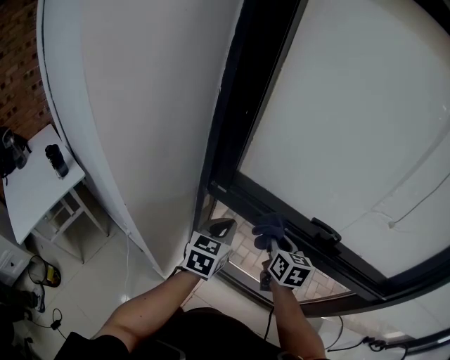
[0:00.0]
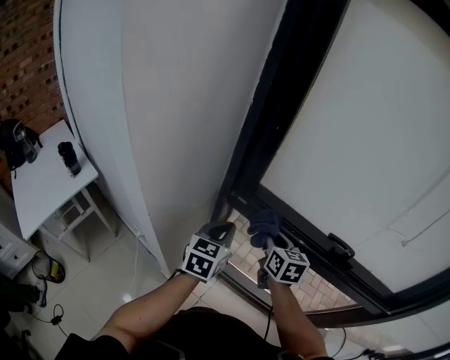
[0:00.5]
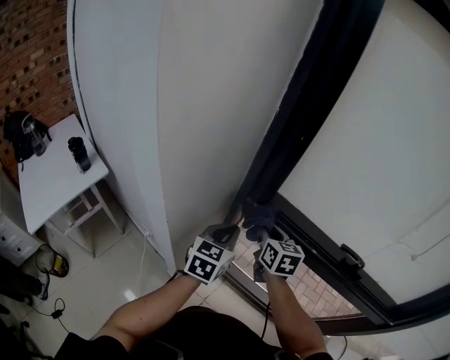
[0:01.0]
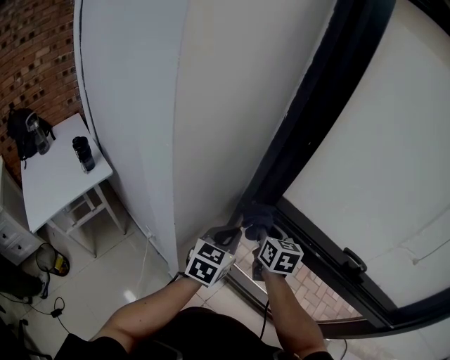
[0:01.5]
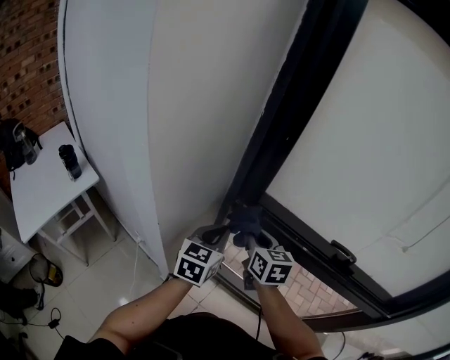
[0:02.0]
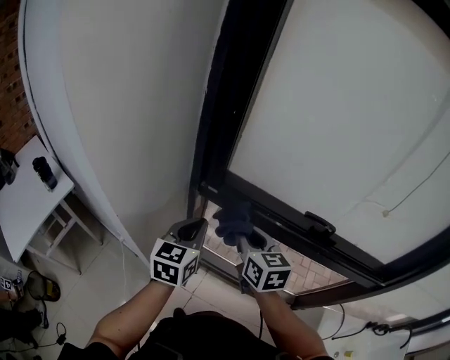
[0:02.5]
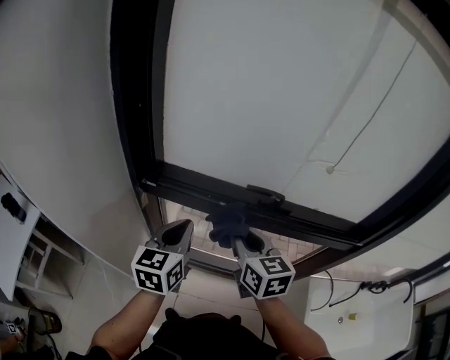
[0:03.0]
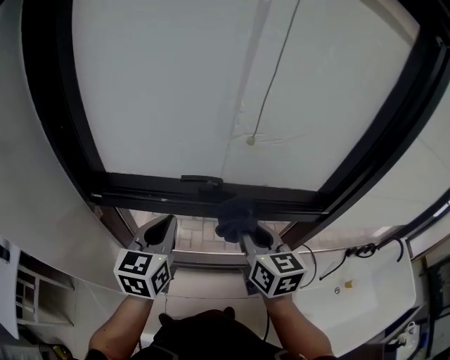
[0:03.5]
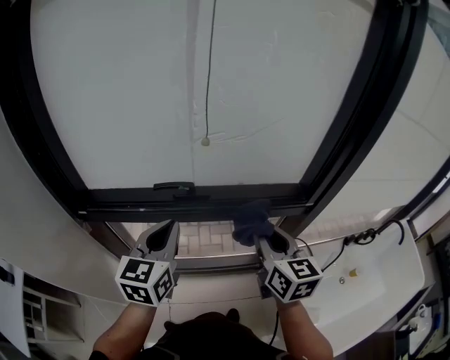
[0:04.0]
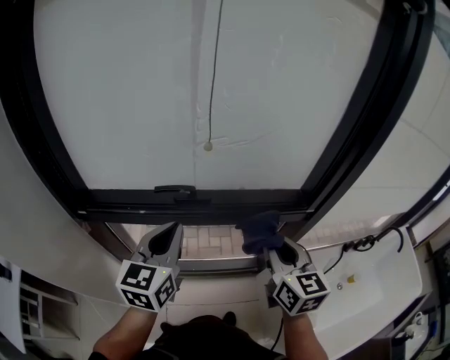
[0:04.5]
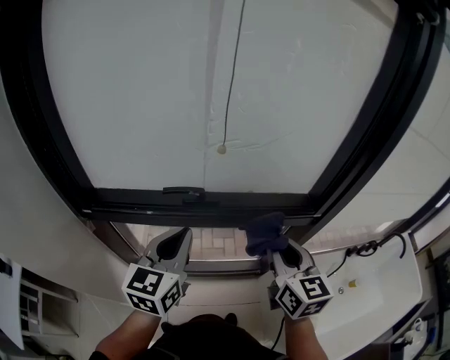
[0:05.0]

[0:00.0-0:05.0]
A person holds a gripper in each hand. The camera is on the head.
0.0 to 2.5 s: The left gripper is displaced to the left by approximately 5 cm; the right gripper shifts approximately 10 cm to the left.
2.5 to 5.0 s: The right gripper ends up approximately 40 cm from where it was, and rotates some 30 degrees. The left gripper moves approximately 35 cm, and rotates about 30 degrees.

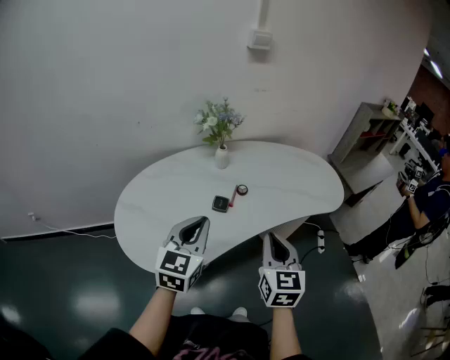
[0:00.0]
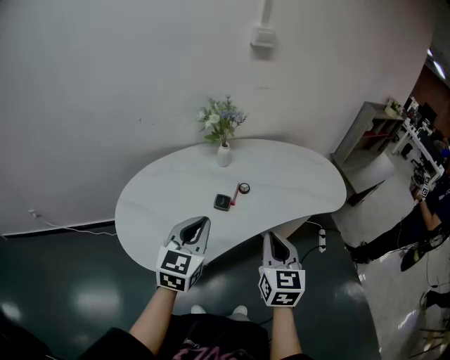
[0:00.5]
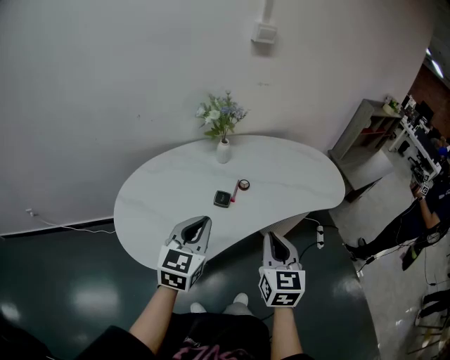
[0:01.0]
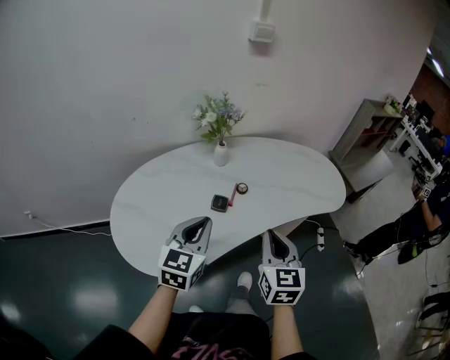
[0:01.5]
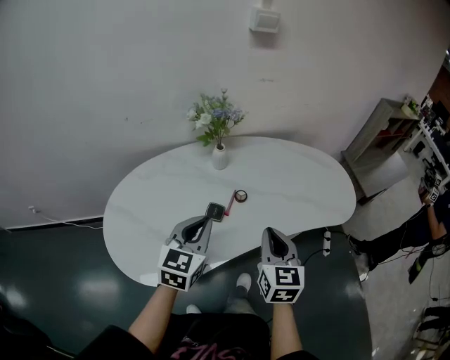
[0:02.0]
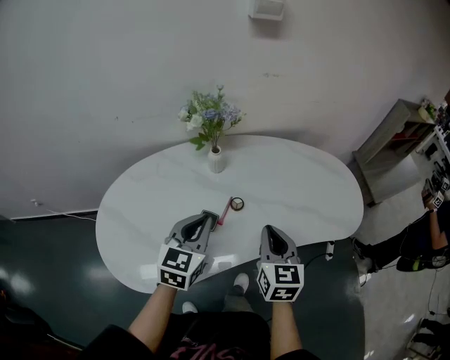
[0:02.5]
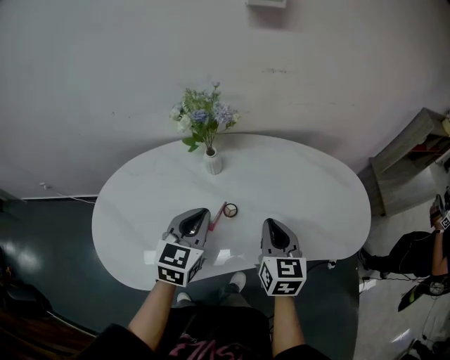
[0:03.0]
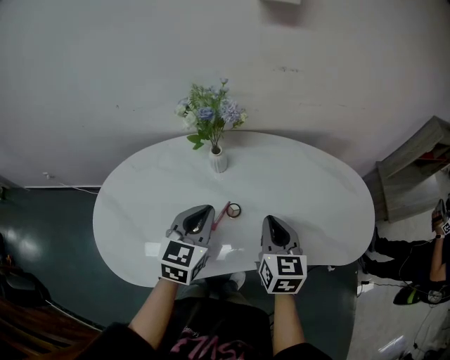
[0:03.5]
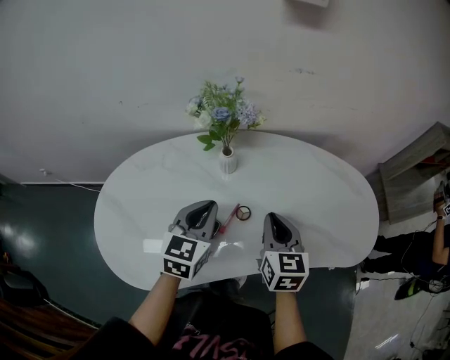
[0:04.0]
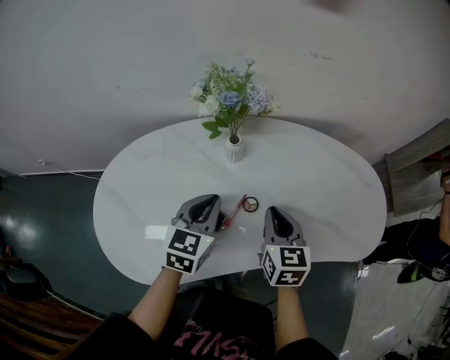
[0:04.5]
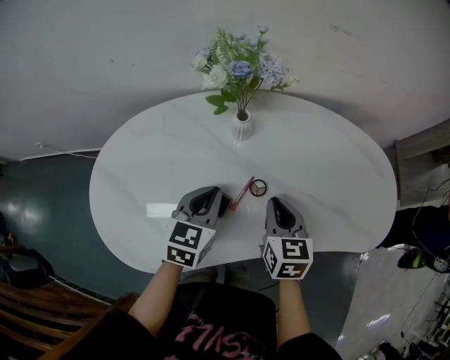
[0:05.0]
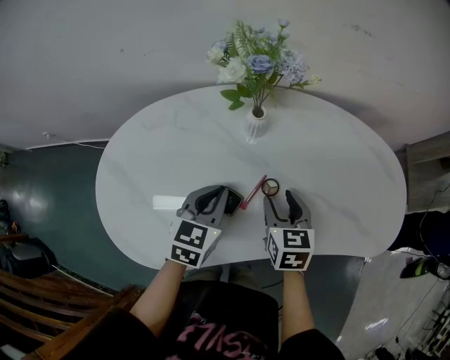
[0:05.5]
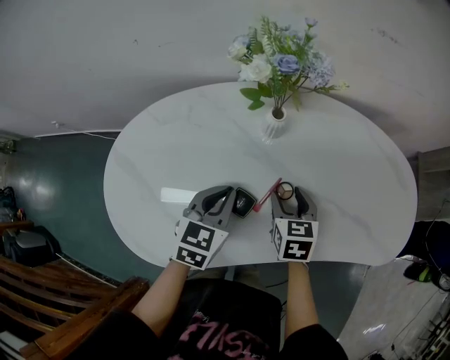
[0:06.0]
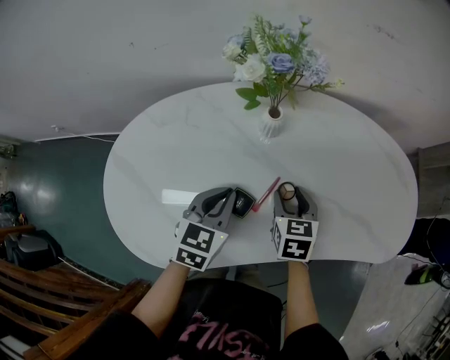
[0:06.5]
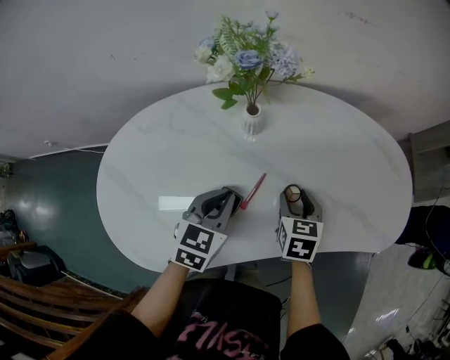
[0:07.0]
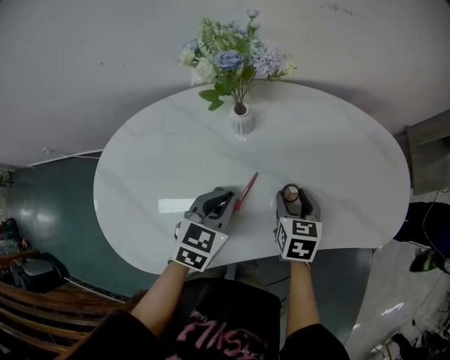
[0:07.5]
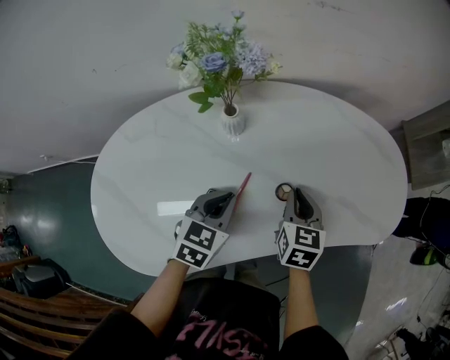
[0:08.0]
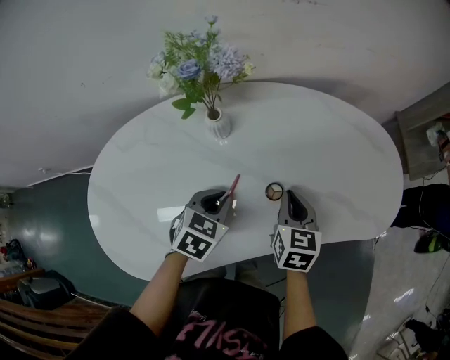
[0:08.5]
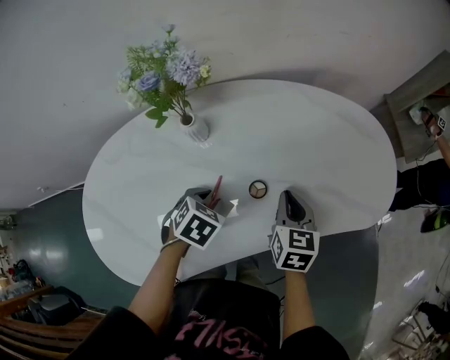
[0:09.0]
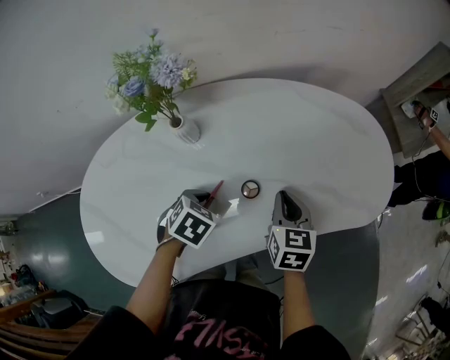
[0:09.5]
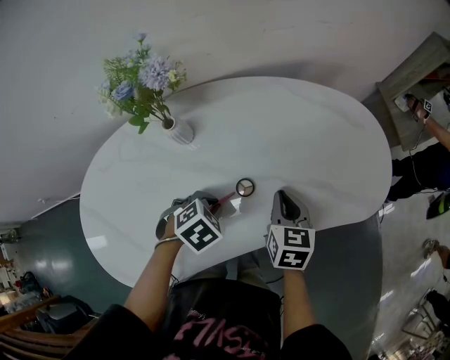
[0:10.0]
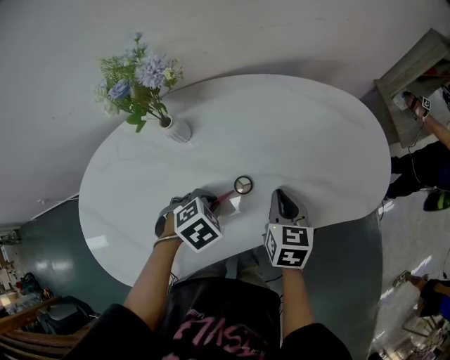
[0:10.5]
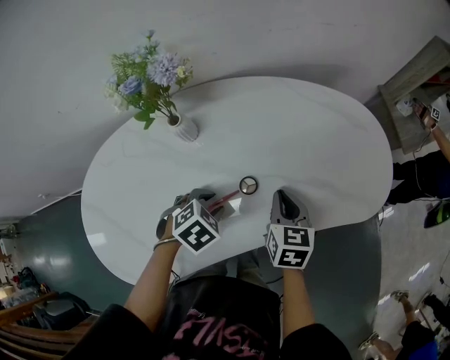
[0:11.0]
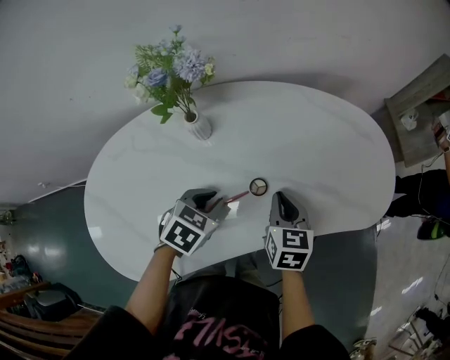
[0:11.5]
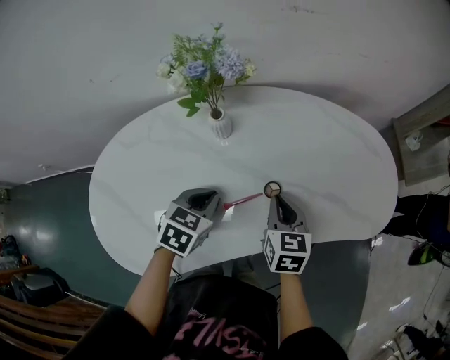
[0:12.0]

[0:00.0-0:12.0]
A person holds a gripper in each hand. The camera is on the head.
0.0 to 2.0 s: The right gripper travels forward by roughly 10 cm; the left gripper moves forward and downward, approximately 10 cm.
2.0 to 4.0 s: The two grippers go about 15 cm forward.
4.0 to 6.0 s: The left gripper heads downward, covering approximately 10 cm. Meanwhile the right gripper is displaced downward and to the left by approximately 15 cm, changes its angle by roughly 20 degrees, and opens its fingers.
6.0 to 8.0 s: Both grippers move to the right, about 10 cm. The right gripper closes.
8.0 to 10.0 s: The right gripper shifts roughly 5 cm to the right; the left gripper goes some 10 cm to the right and downward, and tilts its fingers about 30 degrees downward.
10.0 to 12.0 s: The left gripper shifts some 10 cm to the left and upward, and changes its angle by roughly 40 degrees, while the right gripper is displaced to the left by some 10 cm.

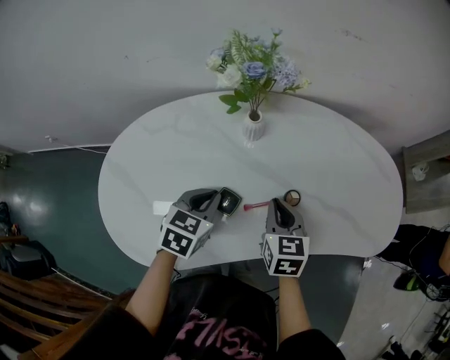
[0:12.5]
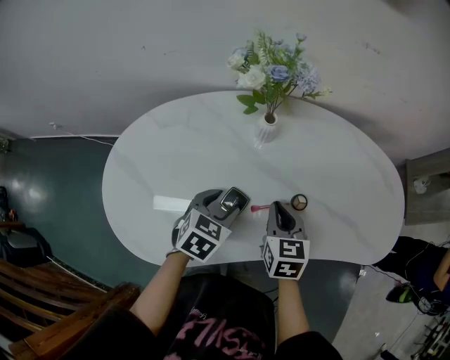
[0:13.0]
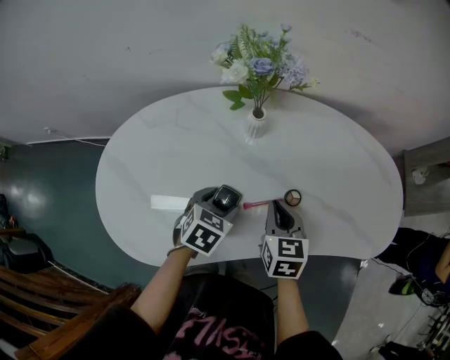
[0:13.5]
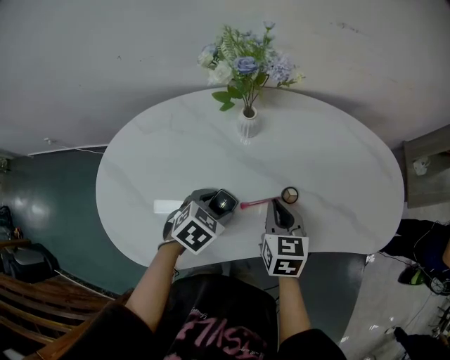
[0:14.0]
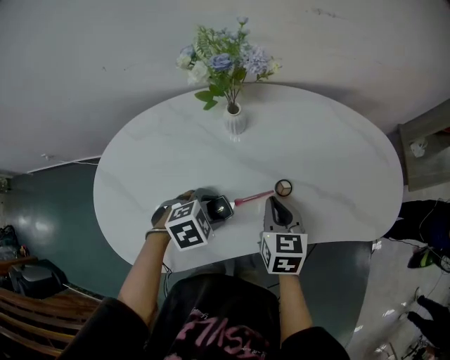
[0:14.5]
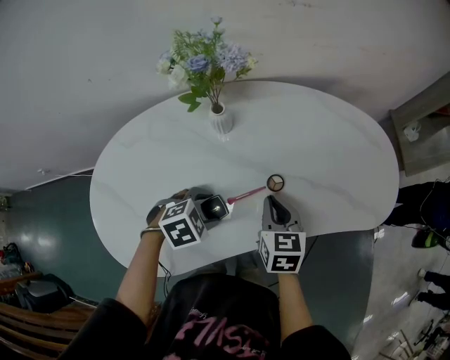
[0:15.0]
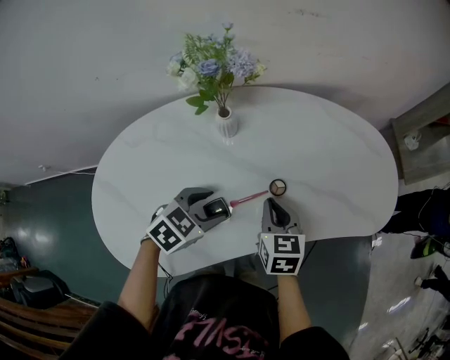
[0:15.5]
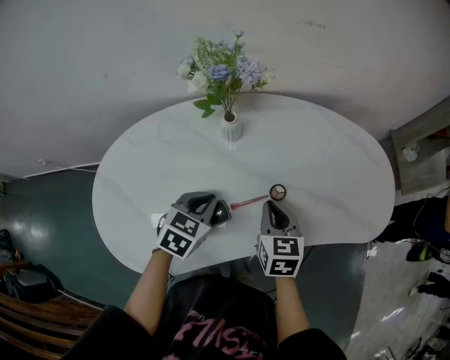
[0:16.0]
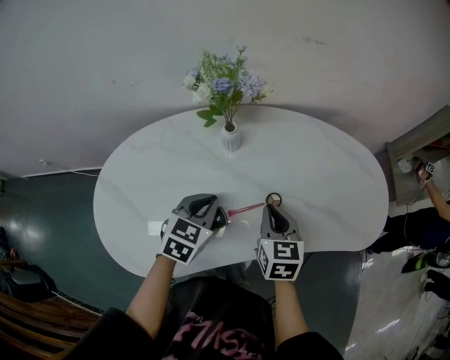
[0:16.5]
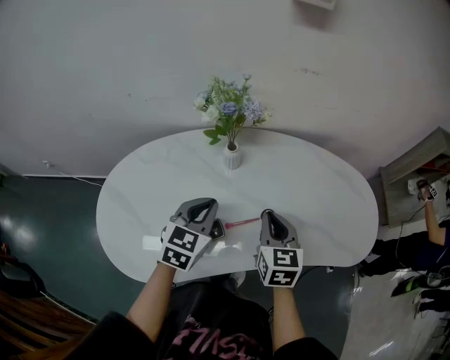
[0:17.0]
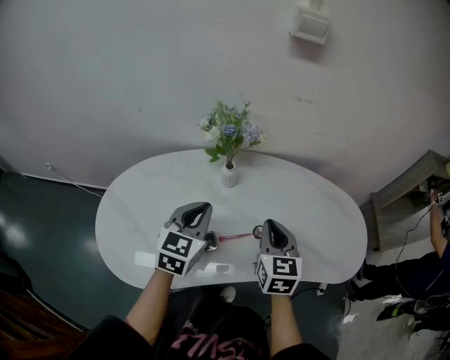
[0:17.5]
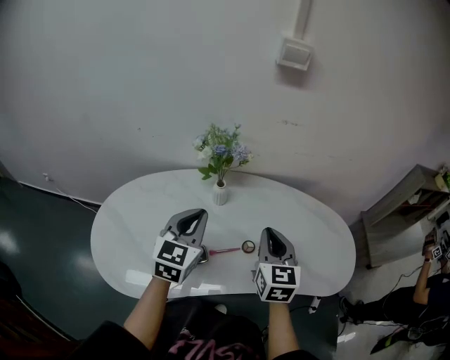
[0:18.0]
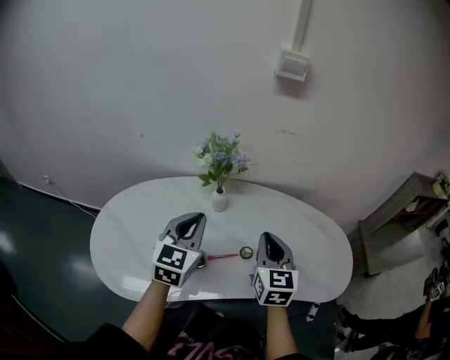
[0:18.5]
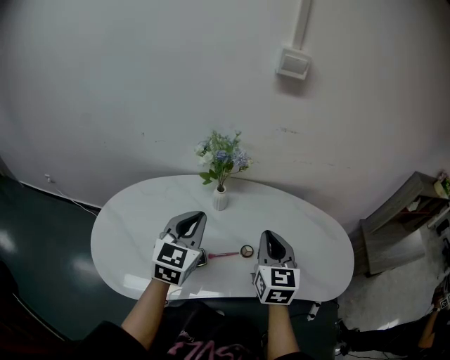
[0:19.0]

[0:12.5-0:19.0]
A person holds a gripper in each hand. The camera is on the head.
12.5 to 14.5 s: The left gripper travels downward and to the right by roughly 10 cm, changes its angle by some 50 degrees, and opens.
14.5 to 17.0 s: The right gripper moves upward, roughly 10 cm. The left gripper travels upward by some 15 cm, angles its fingers upward, by approximately 40 degrees, and closes its fingers.
17.0 to 19.0 s: Both grippers move upward, approximately 10 cm. The left gripper rotates some 20 degrees.

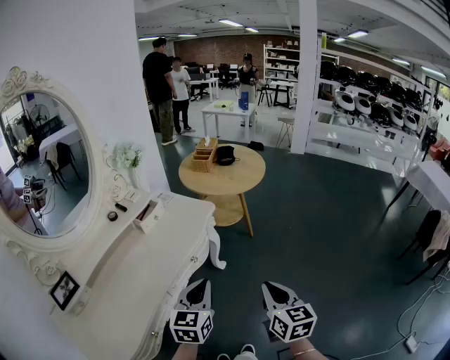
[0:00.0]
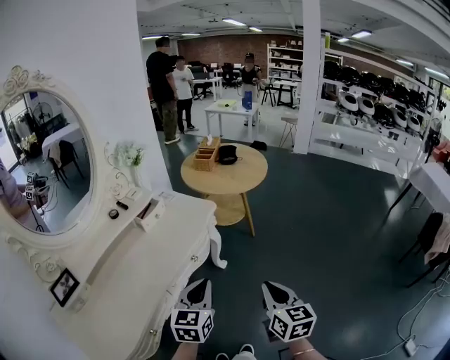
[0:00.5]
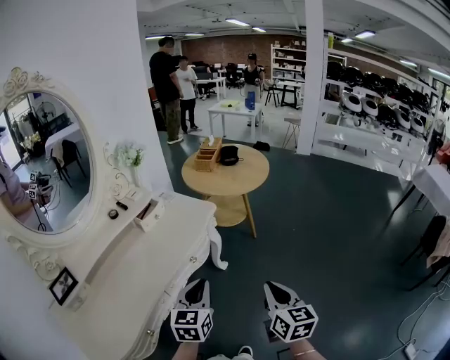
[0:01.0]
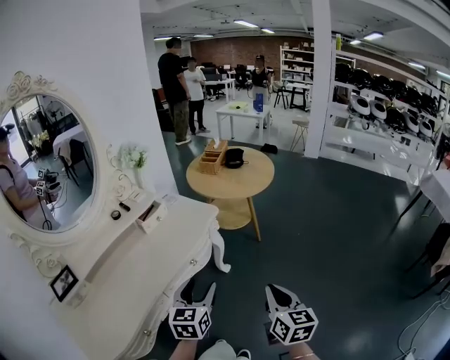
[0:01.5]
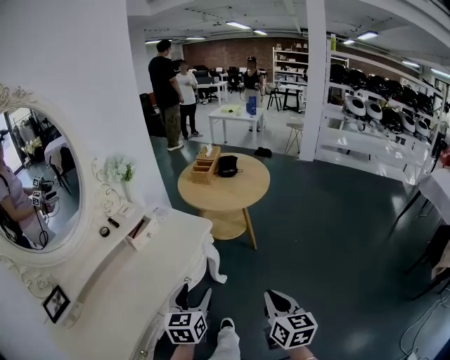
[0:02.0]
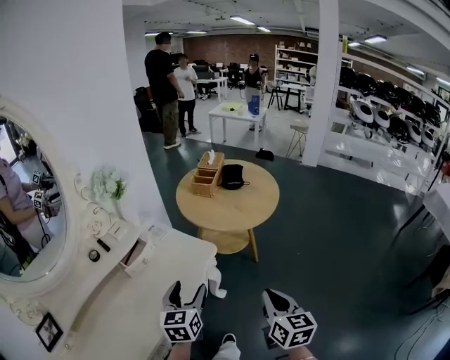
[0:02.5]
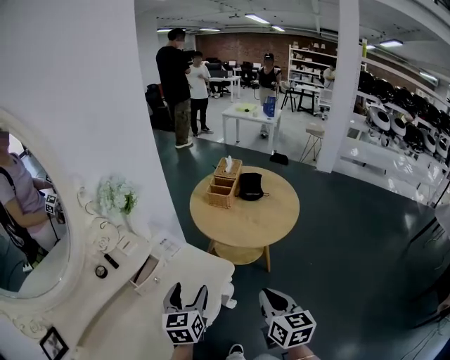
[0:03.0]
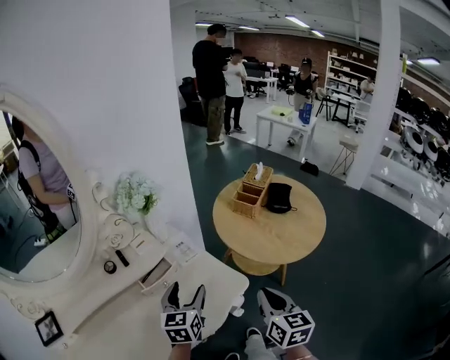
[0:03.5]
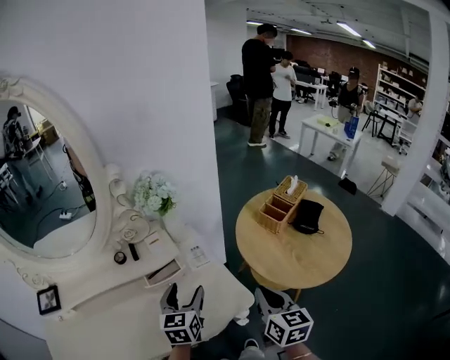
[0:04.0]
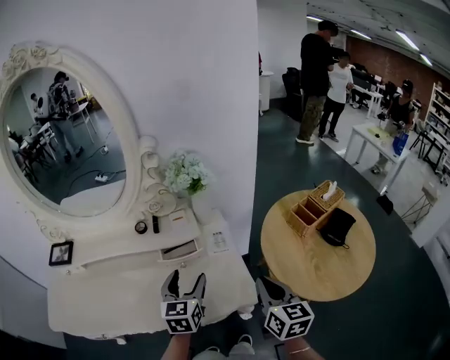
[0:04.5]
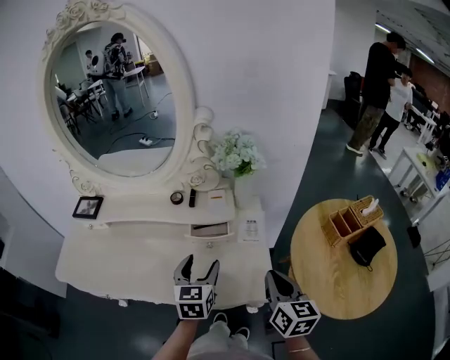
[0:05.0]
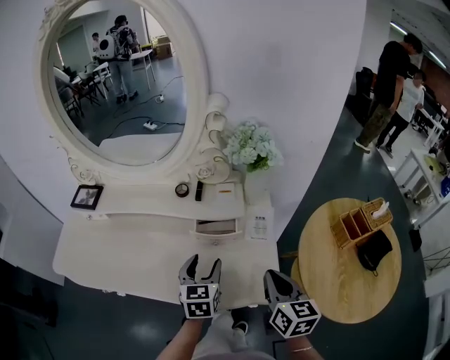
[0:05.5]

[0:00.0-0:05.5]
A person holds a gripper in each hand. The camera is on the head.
0.0 to 2.0 s: The right gripper moves forward and to the right, about 10 cm, while the left gripper goes about 10 cm forward, and opens.
2.0 to 3.5 s: The two grippers go approximately 35 cm forward.
3.5 to 5.5 s: The right gripper shifts by some 15 cm, and turns by roughly 50 degrees; the left gripper moves roughly 10 cm, and changes its angle by approximately 50 degrees.
